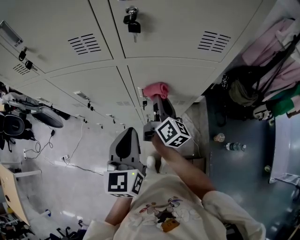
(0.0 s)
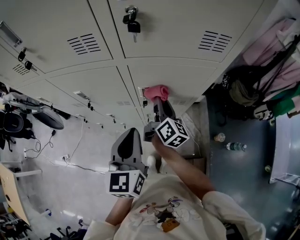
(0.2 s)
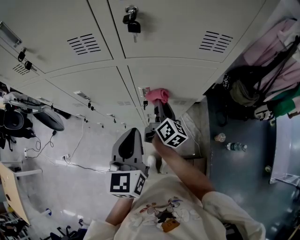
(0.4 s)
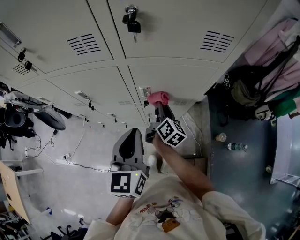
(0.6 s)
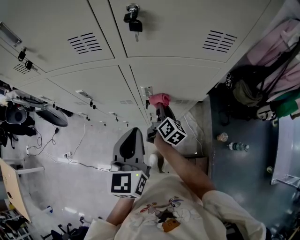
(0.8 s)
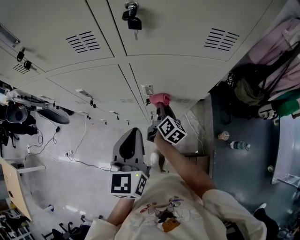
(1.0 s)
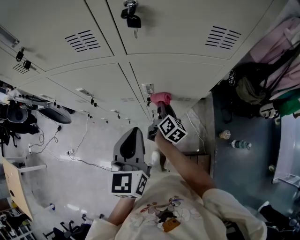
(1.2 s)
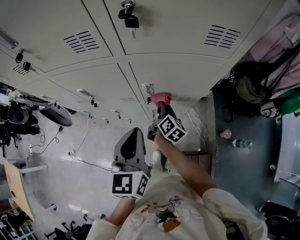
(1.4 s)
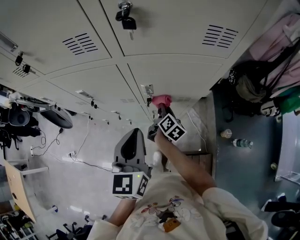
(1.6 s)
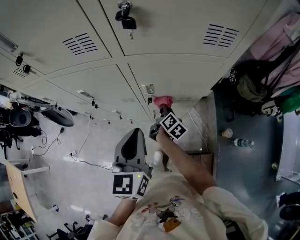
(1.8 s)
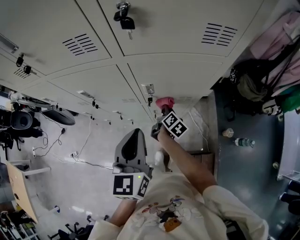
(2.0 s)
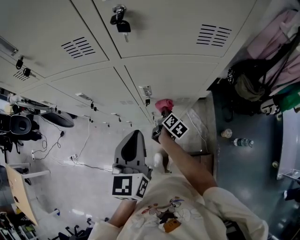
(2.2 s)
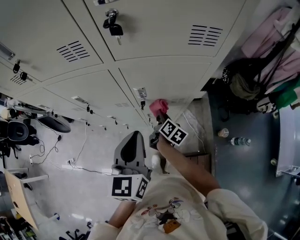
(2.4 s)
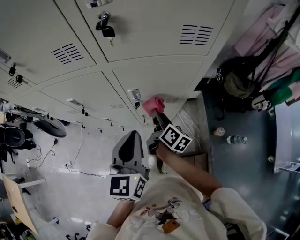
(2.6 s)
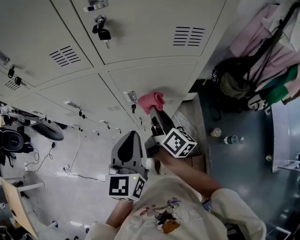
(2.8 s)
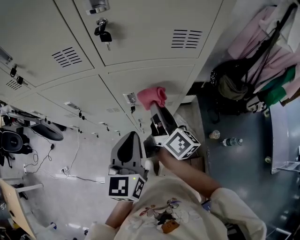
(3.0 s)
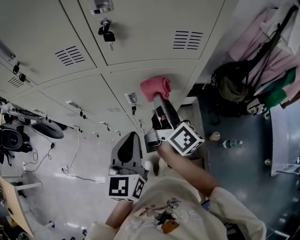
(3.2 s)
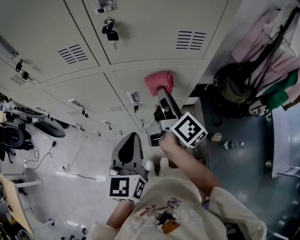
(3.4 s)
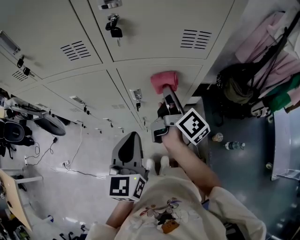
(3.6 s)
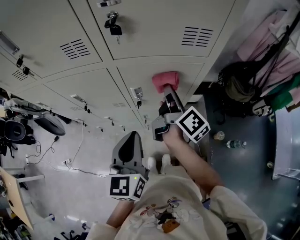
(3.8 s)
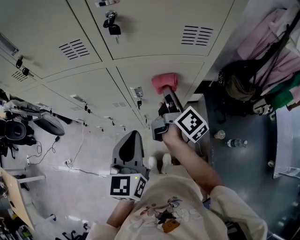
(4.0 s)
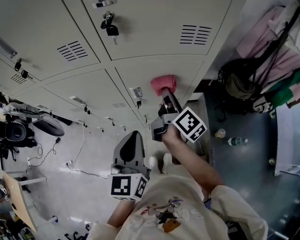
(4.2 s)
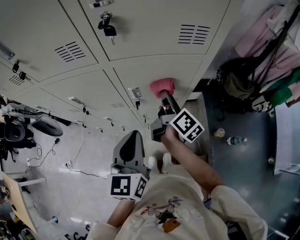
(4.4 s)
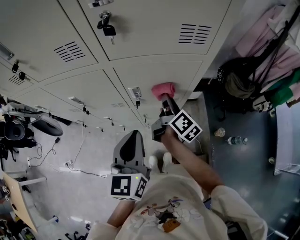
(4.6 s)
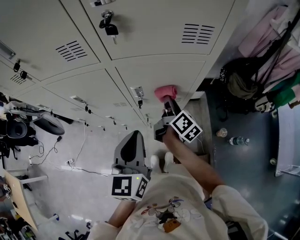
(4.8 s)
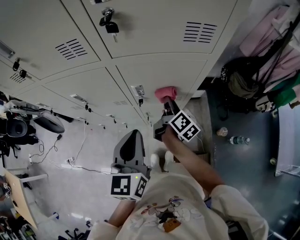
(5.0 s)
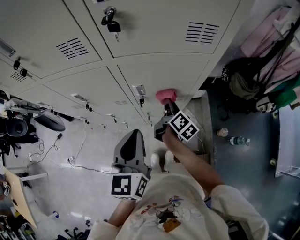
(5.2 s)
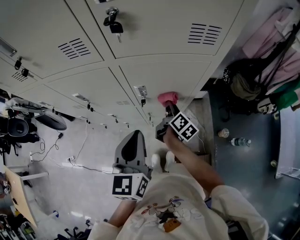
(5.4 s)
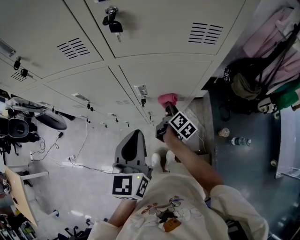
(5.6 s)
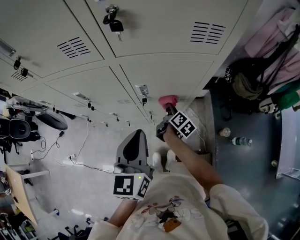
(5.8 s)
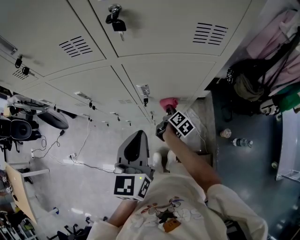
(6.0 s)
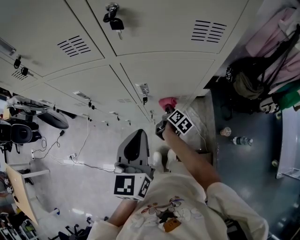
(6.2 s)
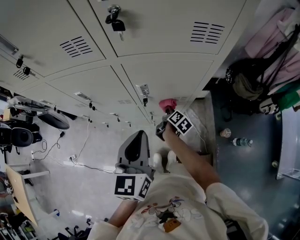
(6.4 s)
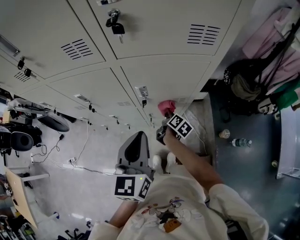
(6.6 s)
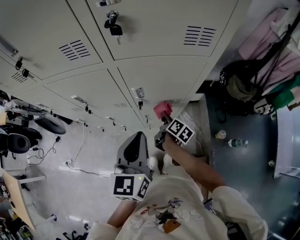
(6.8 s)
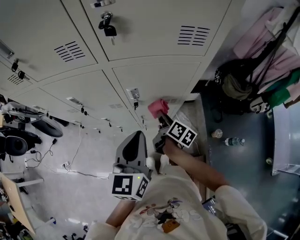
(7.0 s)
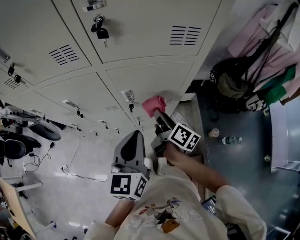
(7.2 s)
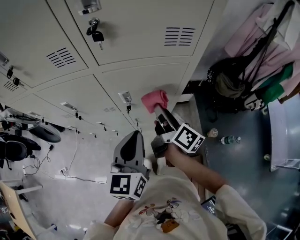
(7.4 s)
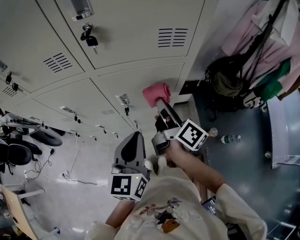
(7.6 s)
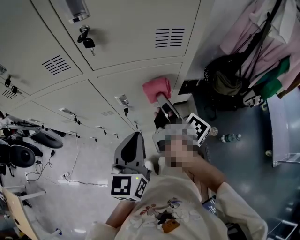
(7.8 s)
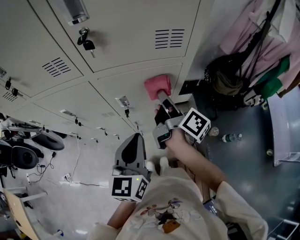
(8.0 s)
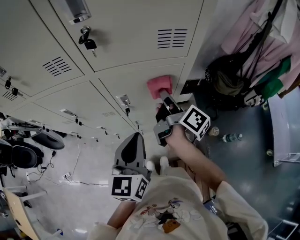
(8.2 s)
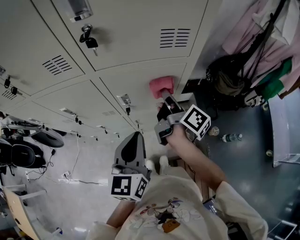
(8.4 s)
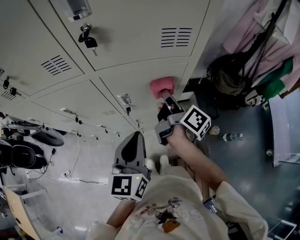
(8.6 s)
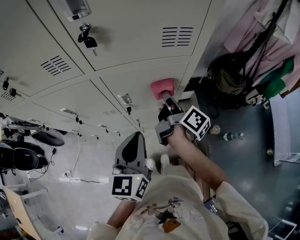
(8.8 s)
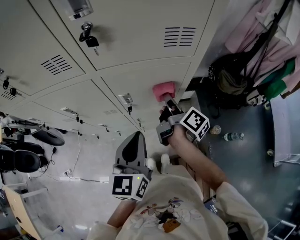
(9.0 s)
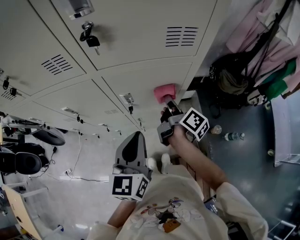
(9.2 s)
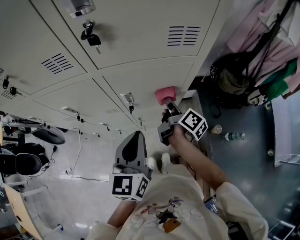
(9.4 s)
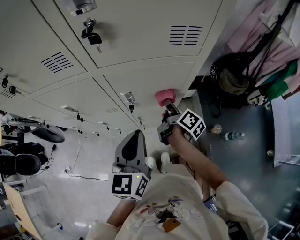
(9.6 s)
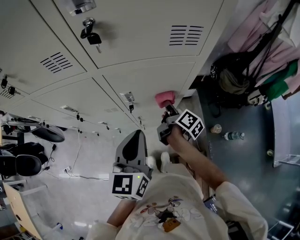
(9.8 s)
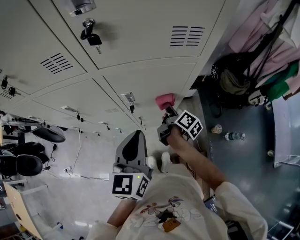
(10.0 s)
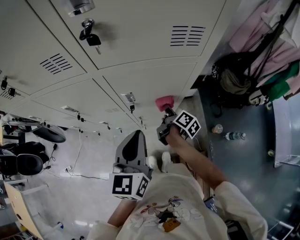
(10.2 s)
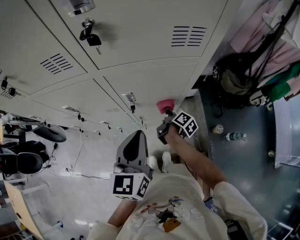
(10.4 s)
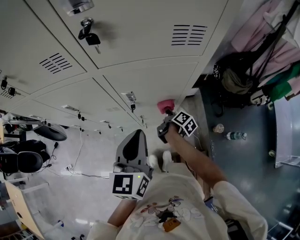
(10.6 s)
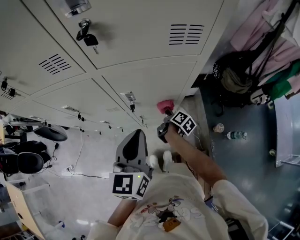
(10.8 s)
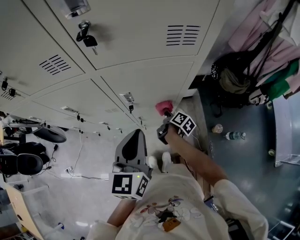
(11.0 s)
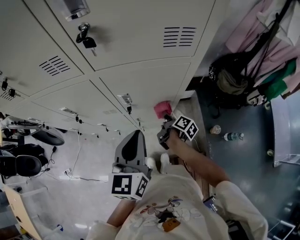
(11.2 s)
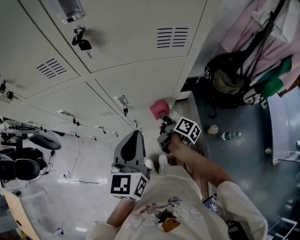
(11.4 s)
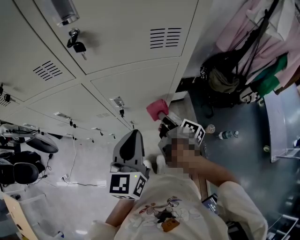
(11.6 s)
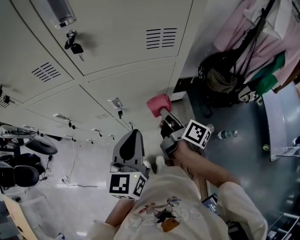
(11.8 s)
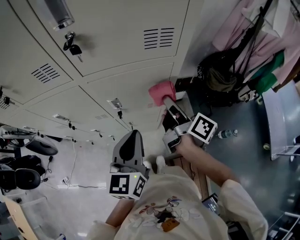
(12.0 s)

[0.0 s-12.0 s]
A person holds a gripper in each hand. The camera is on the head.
0.0 to 1.6 s: The right gripper travels downward by approximately 15 cm, and changes its angle by approximately 20 degrees.
1.6 to 3.0 s: The right gripper is displaced upward by roughly 25 cm, and turns by roughly 30 degrees.
3.0 to 4.4 s: The right gripper shifts roughly 5 cm downward.
4.4 to 6.0 s: The right gripper moves downward, roughly 20 cm, and turns by some 30 degrees.
6.0 to 7.6 s: The right gripper is displaced upward by approximately 30 cm, and tips its fingers upward by approximately 30 degrees; the left gripper moves some 5 cm.
7.6 to 9.0 s: The right gripper shifts about 5 cm downward.
9.0 to 10.4 s: The right gripper travels downward by about 20 cm, and swivels about 20 degrees.
10.4 to 12.0 s: The right gripper is displaced upward by about 25 cm, and swivels some 30 degrees.

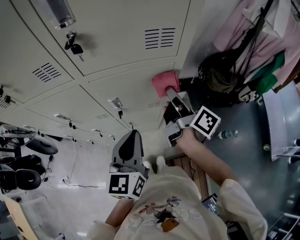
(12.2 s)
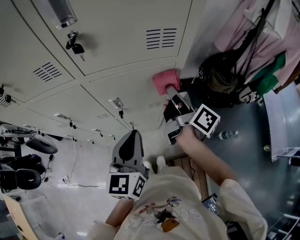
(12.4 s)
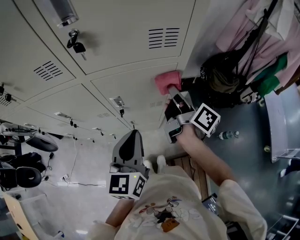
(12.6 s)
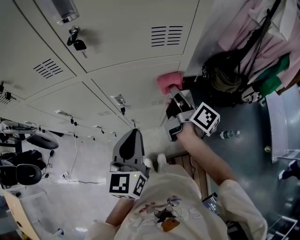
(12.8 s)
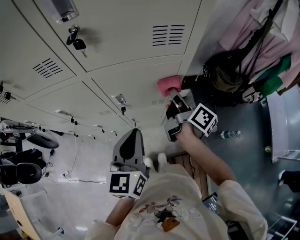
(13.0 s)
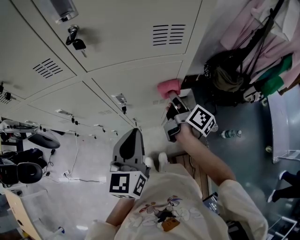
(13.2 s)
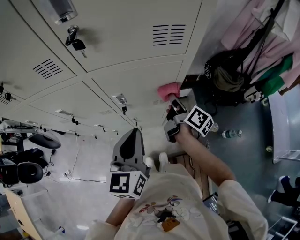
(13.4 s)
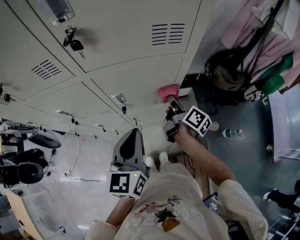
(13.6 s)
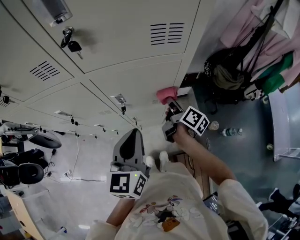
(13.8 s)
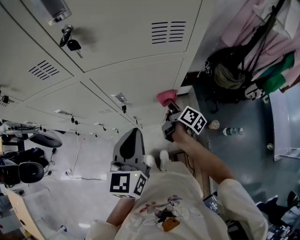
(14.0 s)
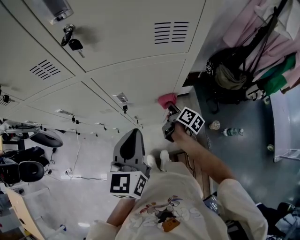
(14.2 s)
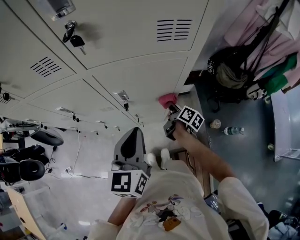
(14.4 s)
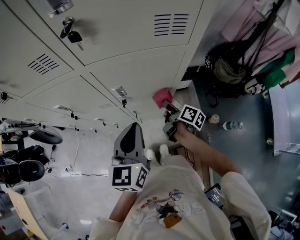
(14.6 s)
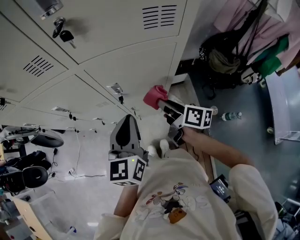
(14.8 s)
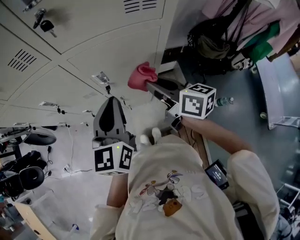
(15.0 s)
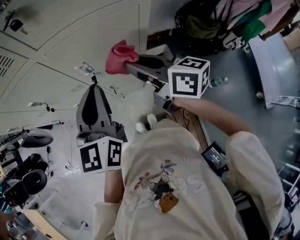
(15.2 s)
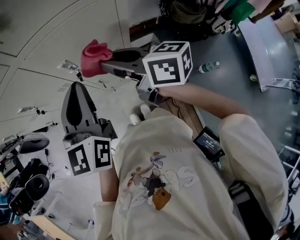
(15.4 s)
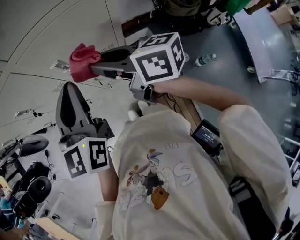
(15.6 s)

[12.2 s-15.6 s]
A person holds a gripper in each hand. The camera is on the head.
12.2 to 13.8 s: The right gripper shifts some 15 cm downward.
13.8 to 15.6 s: The right gripper is displaced upward, to the left and backward by approximately 20 cm, and rotates about 50 degrees.

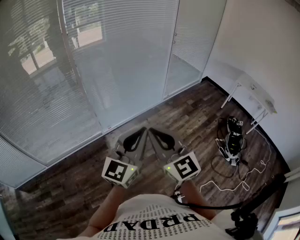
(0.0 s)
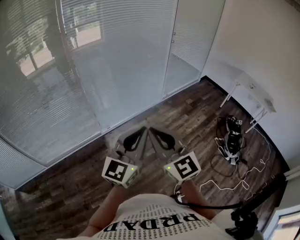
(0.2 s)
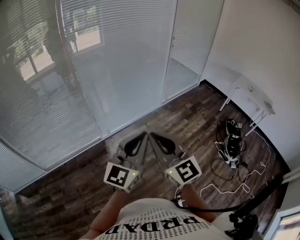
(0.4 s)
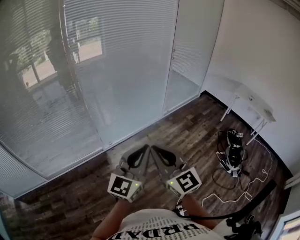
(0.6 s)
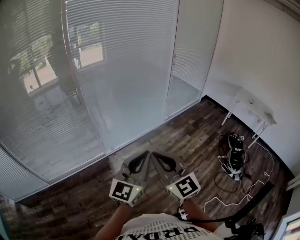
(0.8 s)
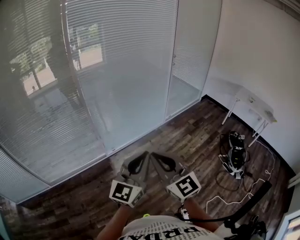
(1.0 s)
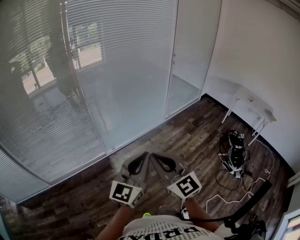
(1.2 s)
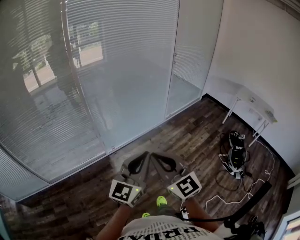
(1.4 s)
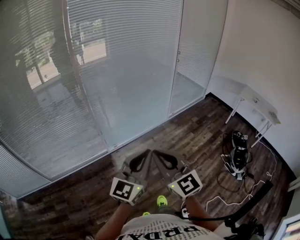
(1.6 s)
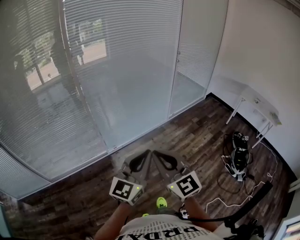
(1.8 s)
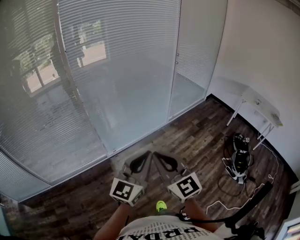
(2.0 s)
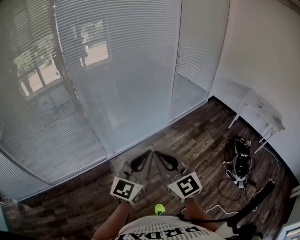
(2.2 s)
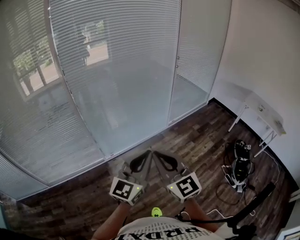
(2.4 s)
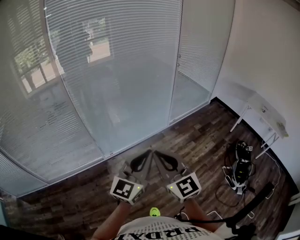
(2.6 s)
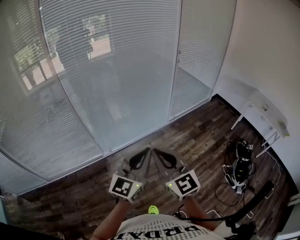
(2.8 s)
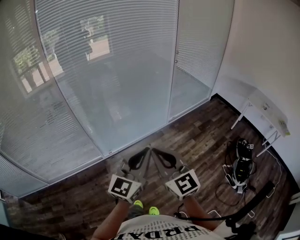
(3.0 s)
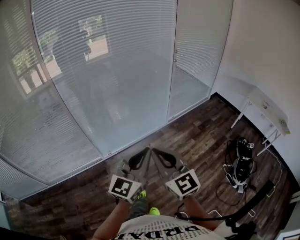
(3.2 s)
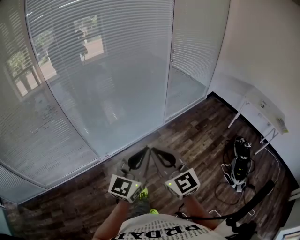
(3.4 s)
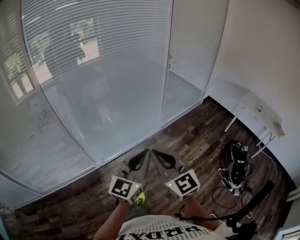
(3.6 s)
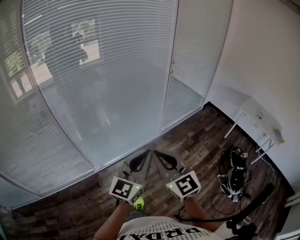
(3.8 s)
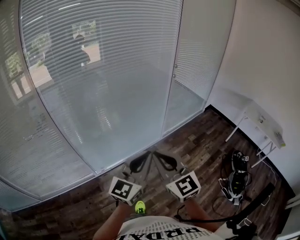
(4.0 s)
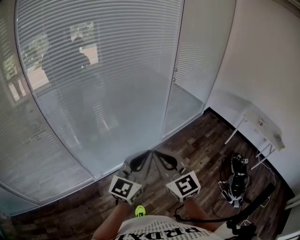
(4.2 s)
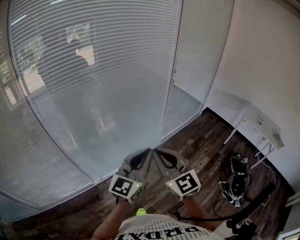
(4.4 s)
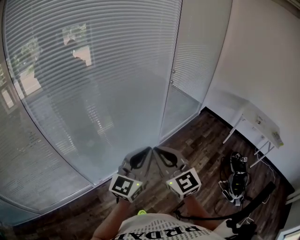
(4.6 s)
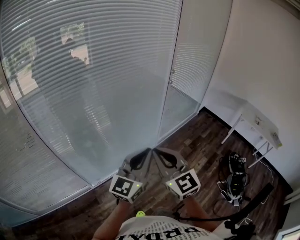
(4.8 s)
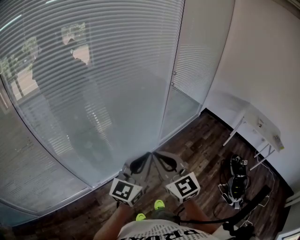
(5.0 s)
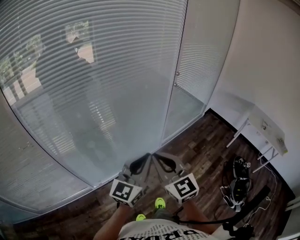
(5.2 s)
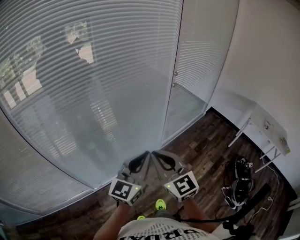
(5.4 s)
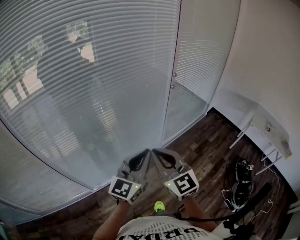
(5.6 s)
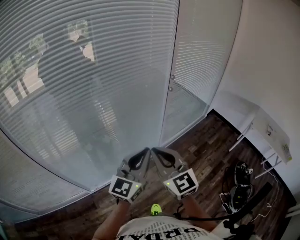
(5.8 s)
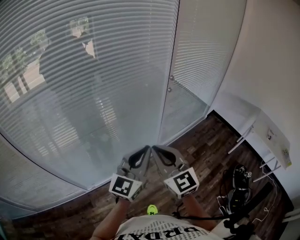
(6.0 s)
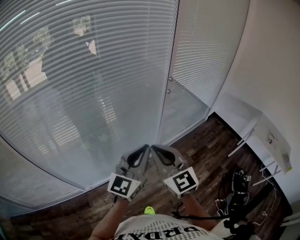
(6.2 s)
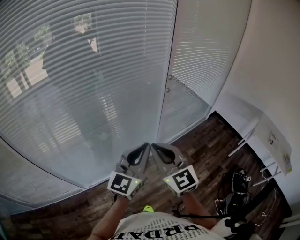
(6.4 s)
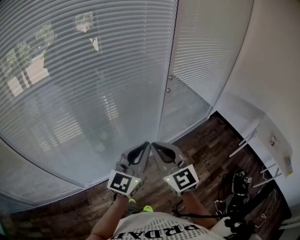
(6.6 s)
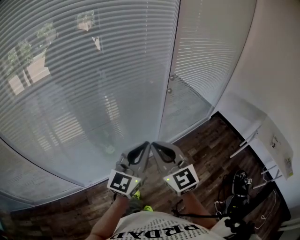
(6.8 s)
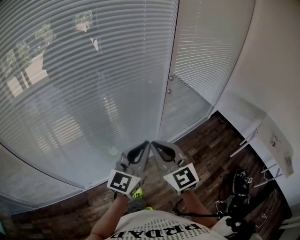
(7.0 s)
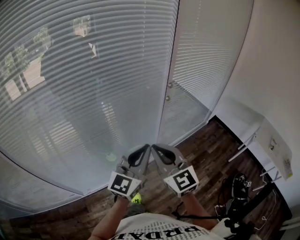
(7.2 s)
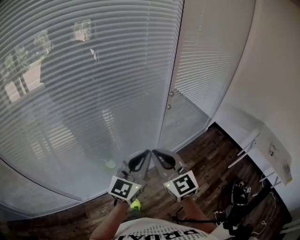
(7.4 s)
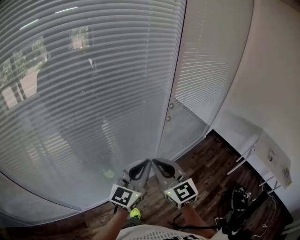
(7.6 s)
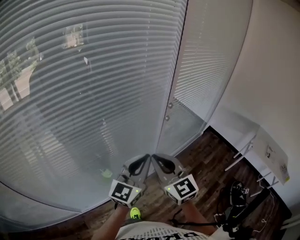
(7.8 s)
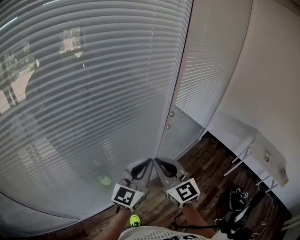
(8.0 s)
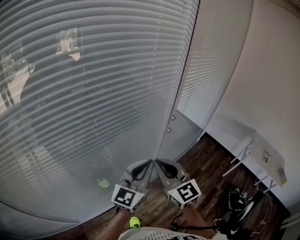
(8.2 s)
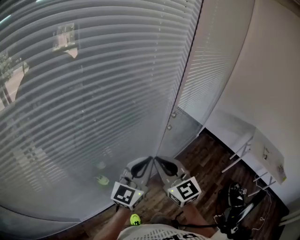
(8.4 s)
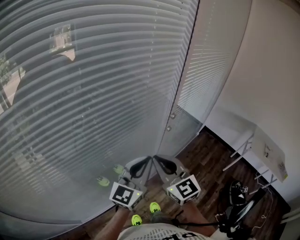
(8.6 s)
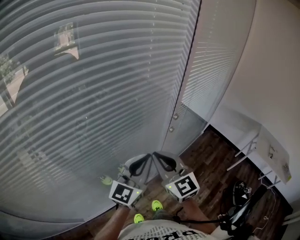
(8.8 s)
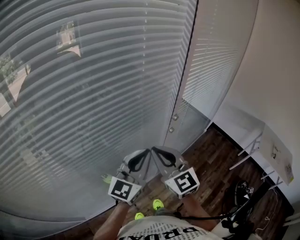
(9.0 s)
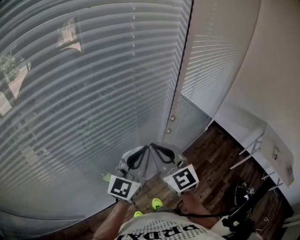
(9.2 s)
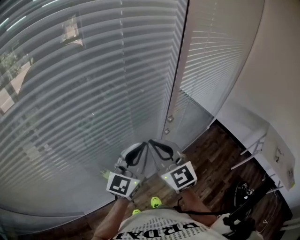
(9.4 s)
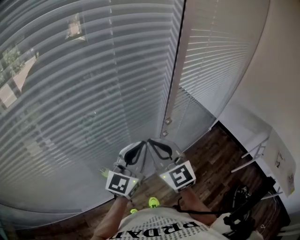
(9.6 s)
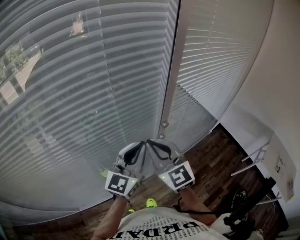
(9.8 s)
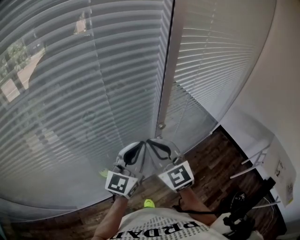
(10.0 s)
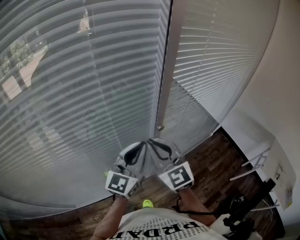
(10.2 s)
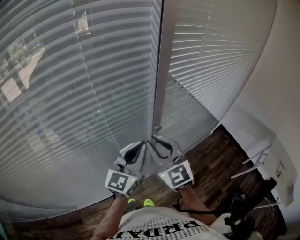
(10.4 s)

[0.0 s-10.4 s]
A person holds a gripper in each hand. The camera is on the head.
0.0 to 1.4 s: The left gripper is displaced to the left by about 5 cm. Meanwhile the right gripper shifts by approximately 5 cm.
1.4 to 3.0 s: The grippers both shift forward and to the right by approximately 30 cm.
3.0 to 4.4 s: Both grippers move forward, approximately 25 cm.
4.4 to 6.0 s: Both grippers travel together forward and to the right, about 30 cm.
6.0 to 7.4 s: Both grippers travel together forward, roughly 10 cm.
7.4 to 9.0 s: Both grippers travel together forward, some 20 cm.
9.0 to 10.4 s: The left gripper goes approximately 15 cm forward and to the right. Meanwhile the right gripper heads to the right and forward, covering roughly 15 cm.
